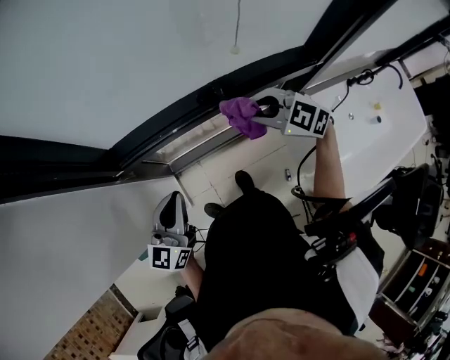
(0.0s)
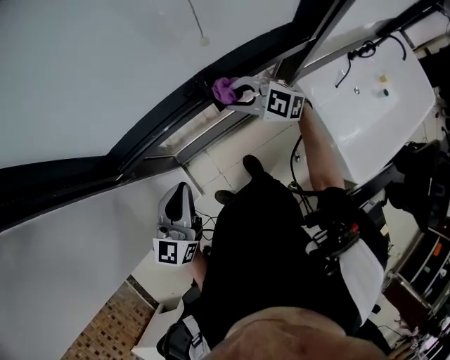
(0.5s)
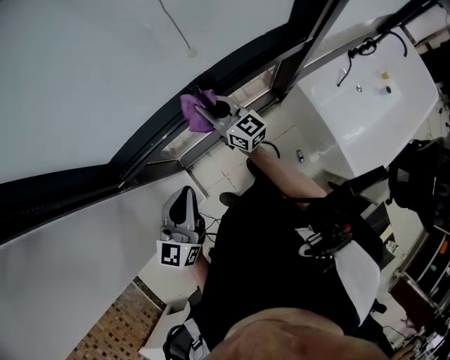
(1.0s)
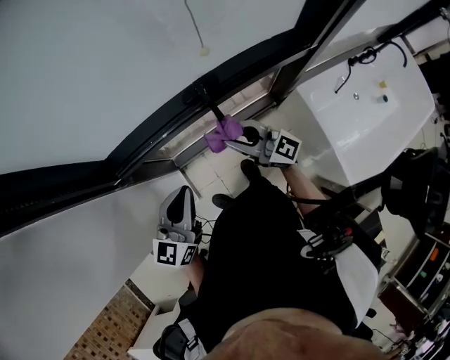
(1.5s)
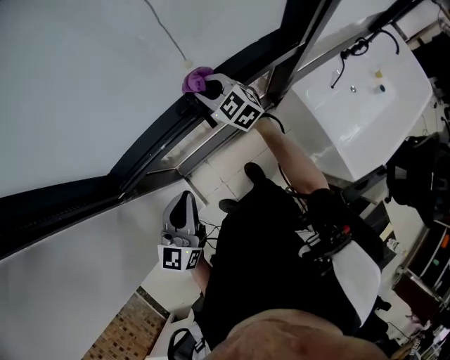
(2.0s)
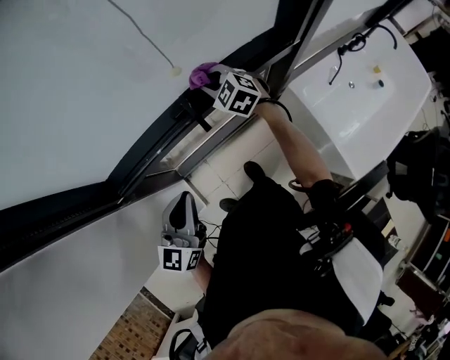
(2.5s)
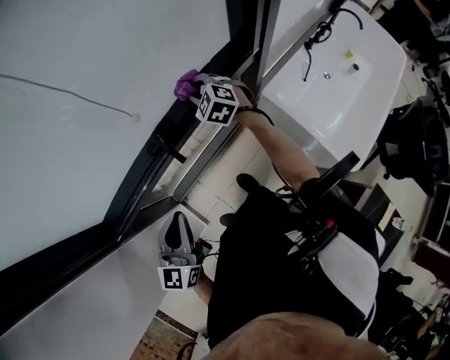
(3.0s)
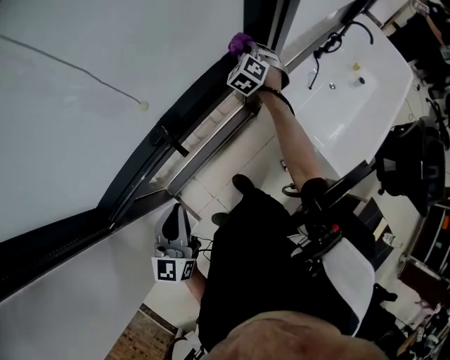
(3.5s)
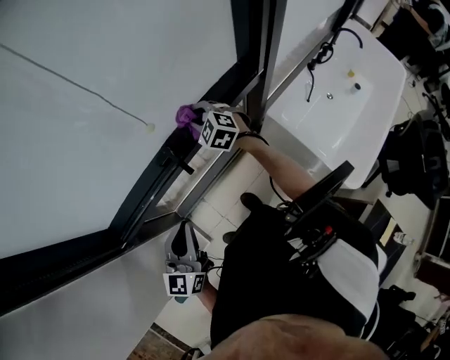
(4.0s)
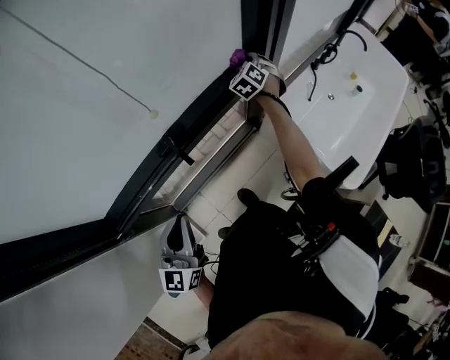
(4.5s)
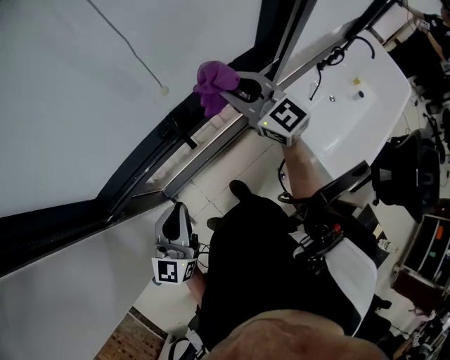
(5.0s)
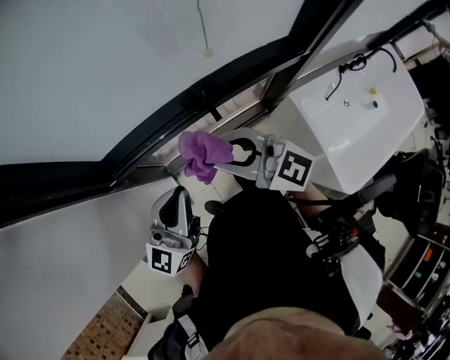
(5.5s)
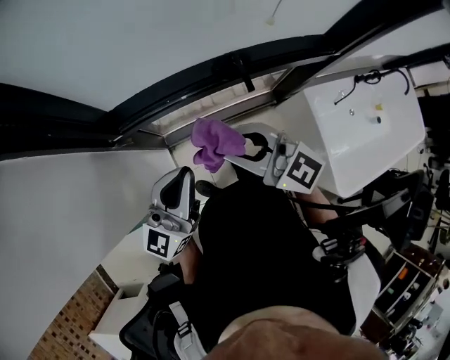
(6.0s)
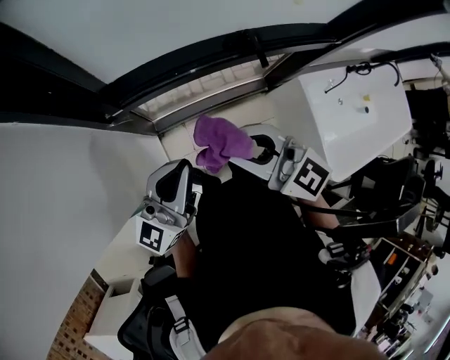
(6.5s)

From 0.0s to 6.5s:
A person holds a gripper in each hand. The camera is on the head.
From 0.0s to 2.0s: The left gripper is displaced to the right by roughly 10 cm; the right gripper goes forward and backward, about 15 cm each way, reversing 2 times, and turns by about 30 degrees.
From 2.0s to 4.5s: The right gripper shifts by roughly 35 cm, and swivels some 50 degrees.
From 4.5s to 6.5s: The right gripper changes place by roughly 70 cm, and tilts its fingers approximately 30 degrees upward; the left gripper moves about 20 cm, and swivels approximately 20 degrees.

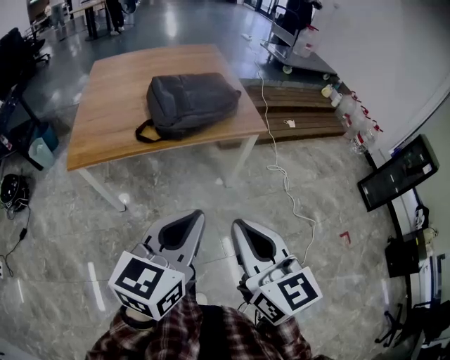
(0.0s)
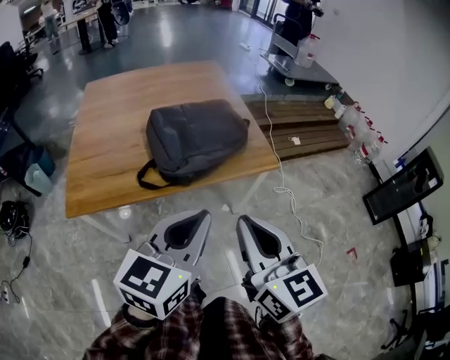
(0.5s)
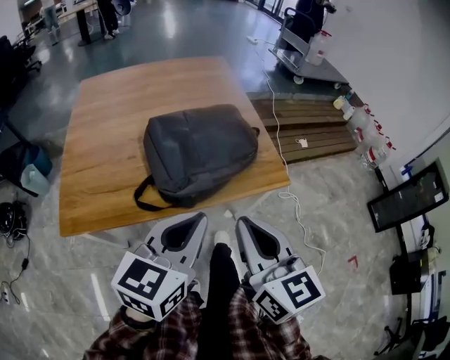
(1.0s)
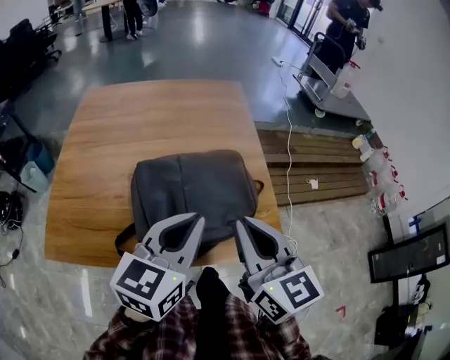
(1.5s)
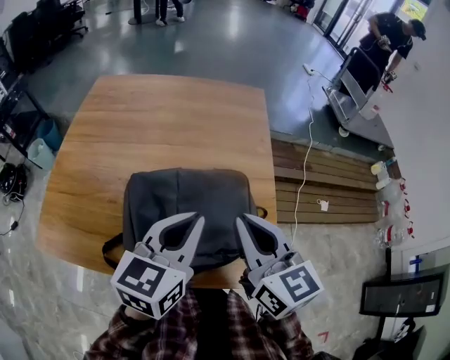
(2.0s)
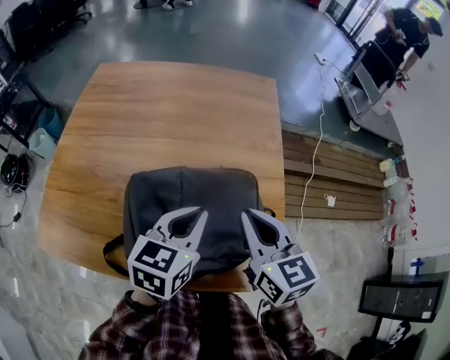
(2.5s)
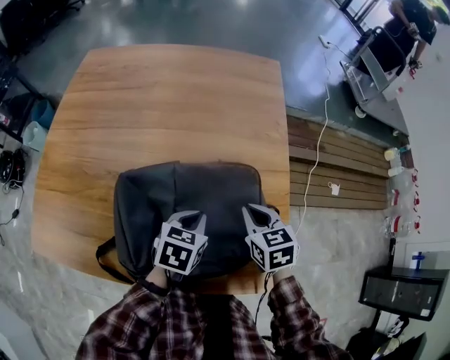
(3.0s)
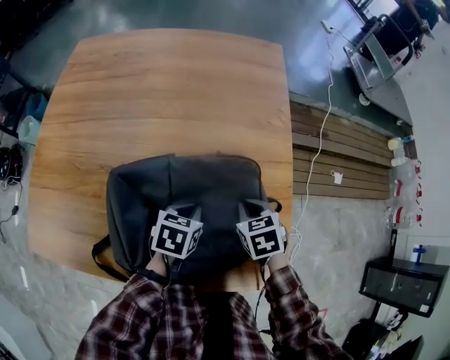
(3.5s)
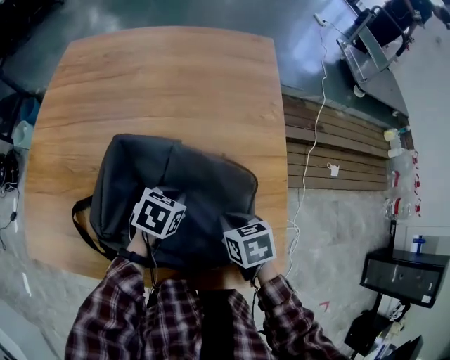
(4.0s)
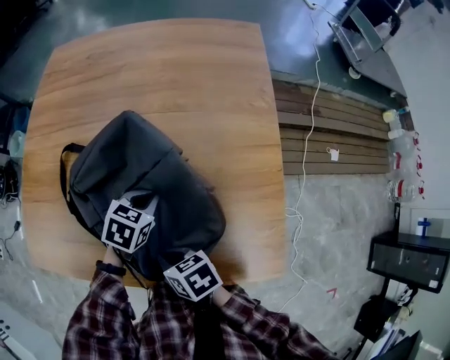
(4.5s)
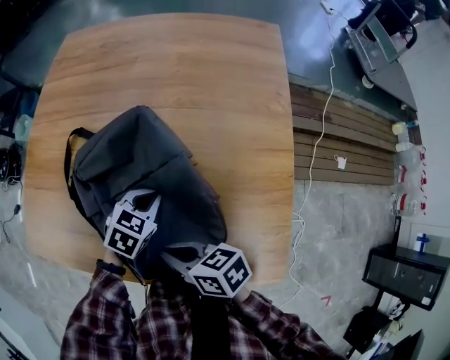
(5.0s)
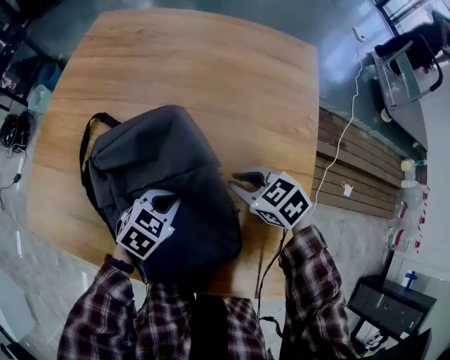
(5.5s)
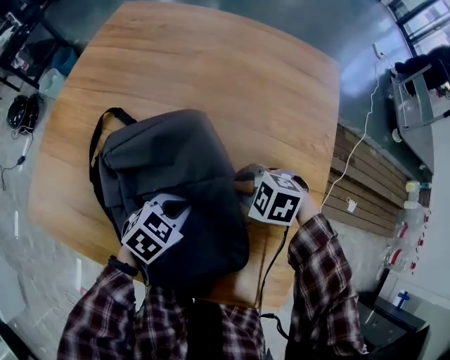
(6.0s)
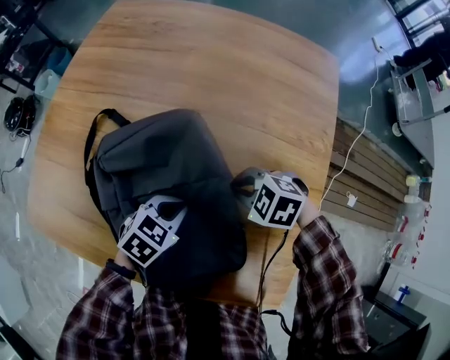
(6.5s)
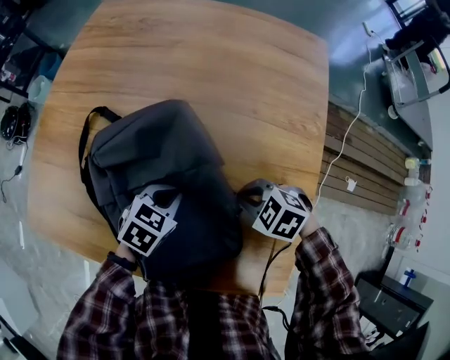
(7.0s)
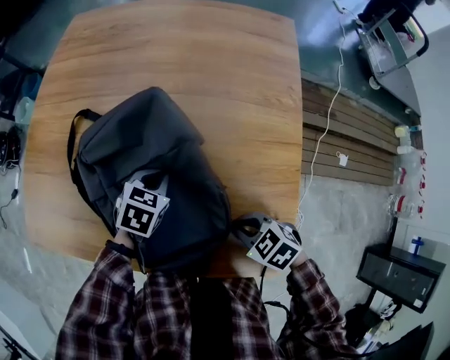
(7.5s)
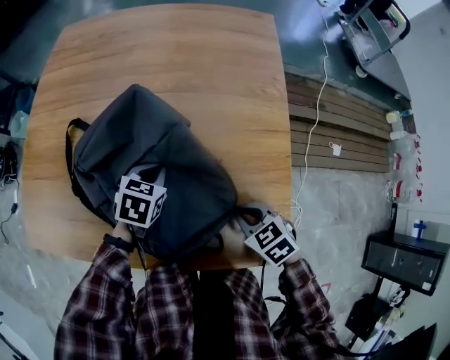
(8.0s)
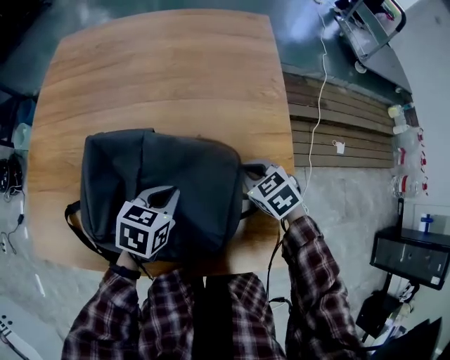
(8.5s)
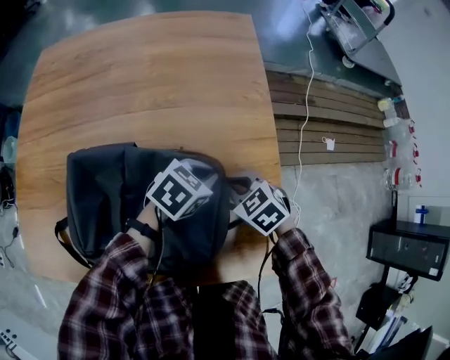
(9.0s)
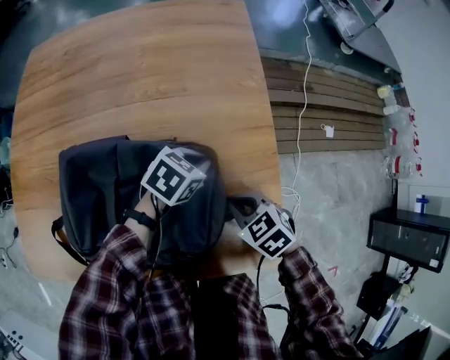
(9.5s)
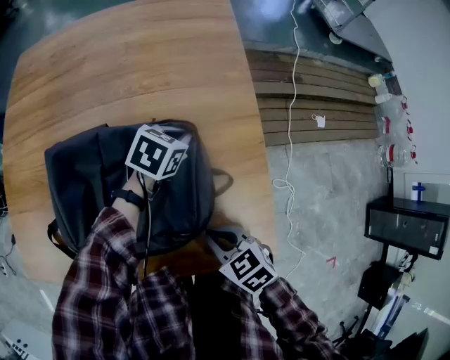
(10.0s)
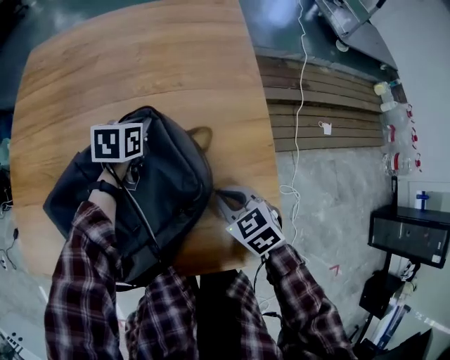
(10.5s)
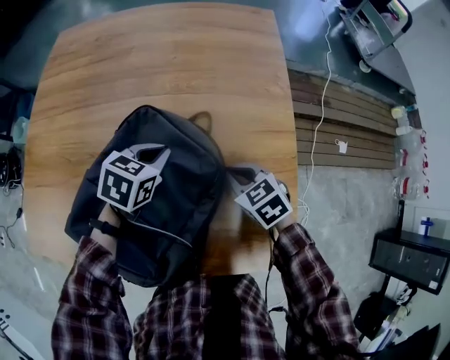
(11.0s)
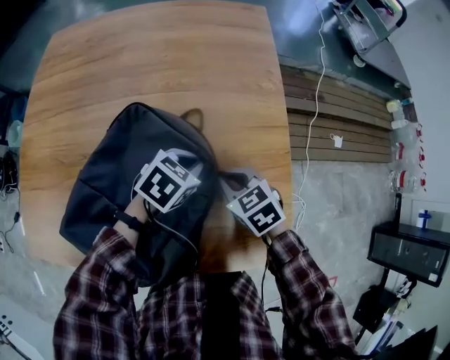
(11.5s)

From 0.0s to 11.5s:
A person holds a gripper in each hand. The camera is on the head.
From 0.0s to 2.0s: The two grippers travel together, forward, roughly 60 cm.
From 2.0s to 4.0s: Both grippers move downward, about 30 cm. The right gripper points its fingers about 50 degrees further downward. Meanwhile the left gripper points its fingers roughly 40 degrees further downward.
From 4.0s to 6.0s: The left gripper shifts by about 5 cm. The right gripper shifts by about 15 cm, rotates around the line of its fingers by about 70 degrees, counterclockwise from behind, and opens its fingers.
From 6.0s to 7.5s: The right gripper moves some 20 cm, and swivels about 30 degrees.
From 7.5s to 9.5s: The left gripper ends up some 20 cm from where it was, and rotates about 30 degrees. Meanwhile the right gripper swivels approximately 20 degrees.
From 9.5s to 11.5s: The grippers both shift to the left by some 5 cm. The right gripper goes backward and returns, roughly 10 cm each way.

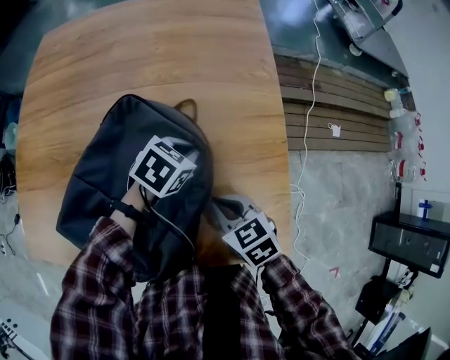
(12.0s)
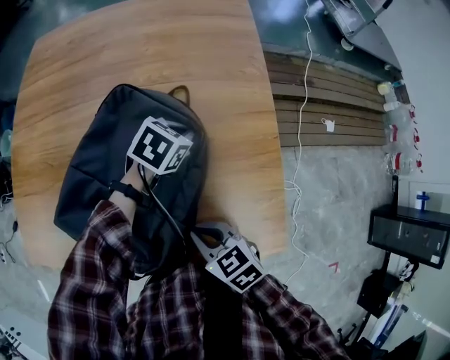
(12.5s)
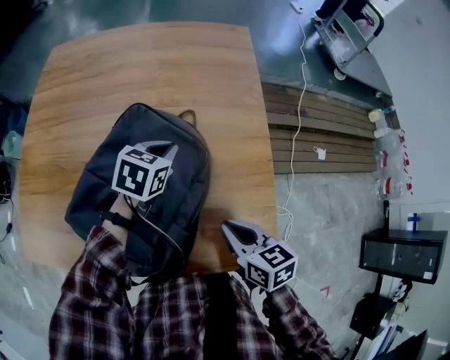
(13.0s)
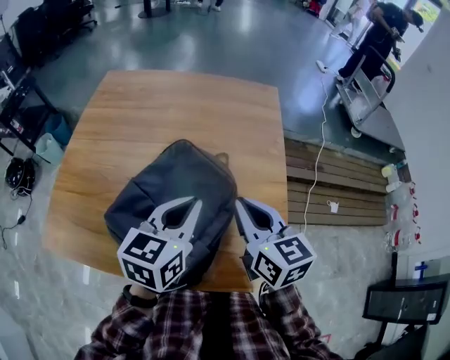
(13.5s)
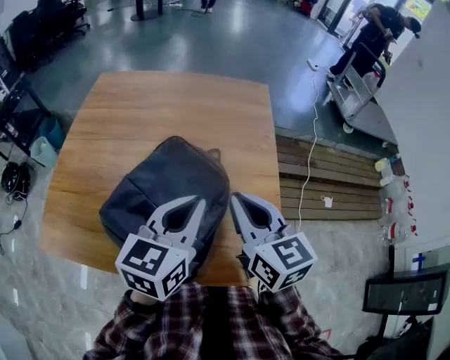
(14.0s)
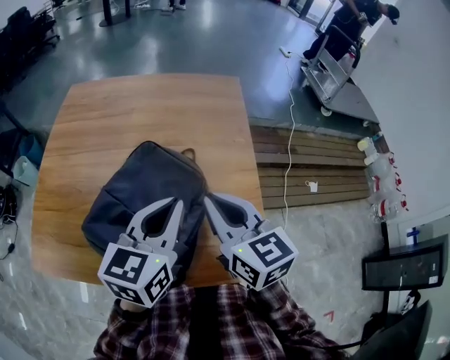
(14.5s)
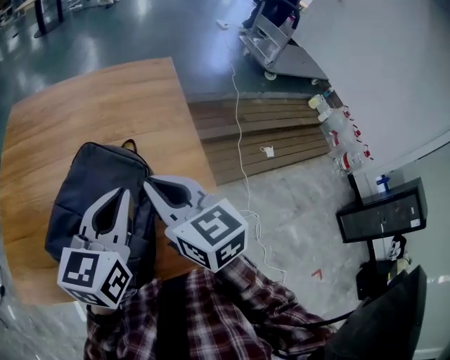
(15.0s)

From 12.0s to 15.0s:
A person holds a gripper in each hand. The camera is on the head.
From 12.0s to 13.5s: The two grippers go about 25 cm upward. The right gripper turns by about 30 degrees; the left gripper tilts its fingers some 30 degrees upward.
From 13.5s to 15.0s: The left gripper shifts roughly 5 cm to the right.

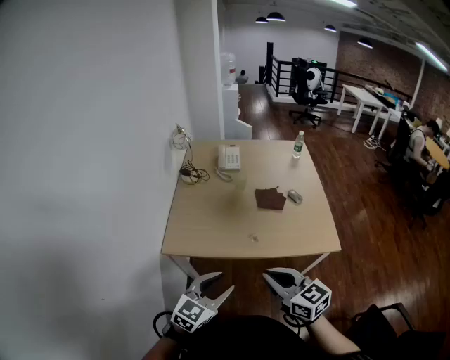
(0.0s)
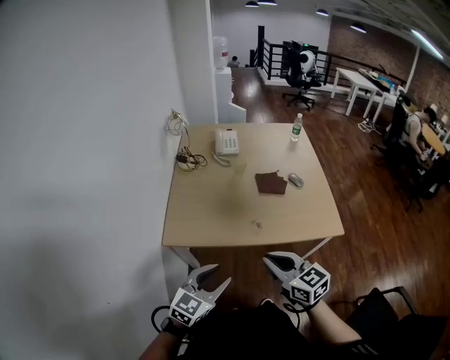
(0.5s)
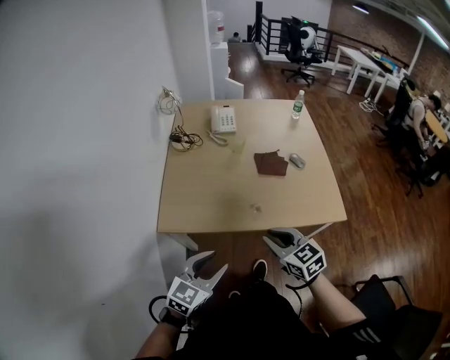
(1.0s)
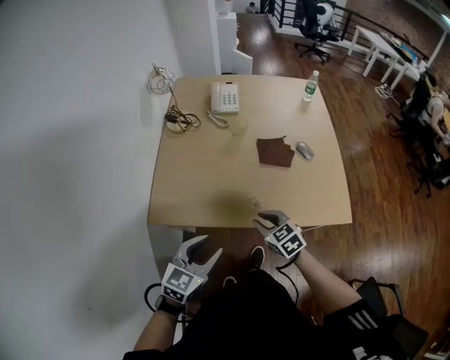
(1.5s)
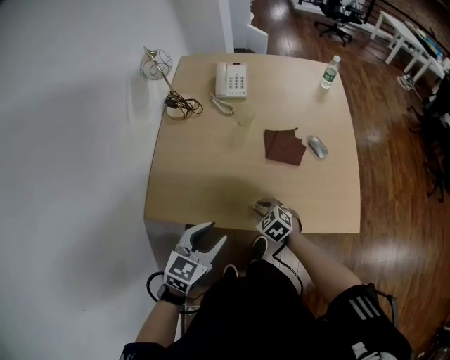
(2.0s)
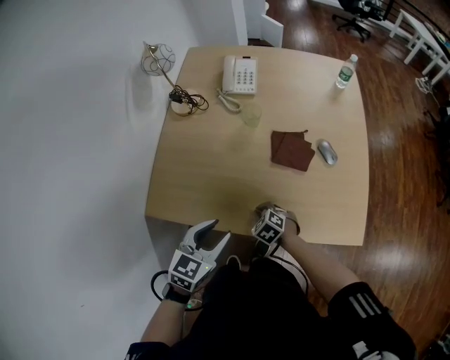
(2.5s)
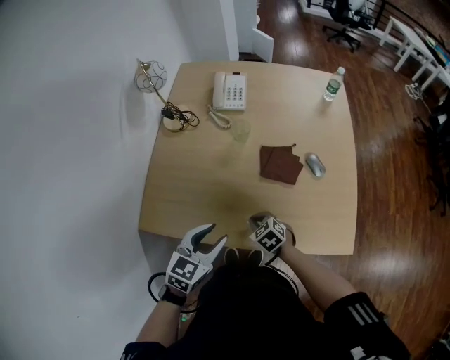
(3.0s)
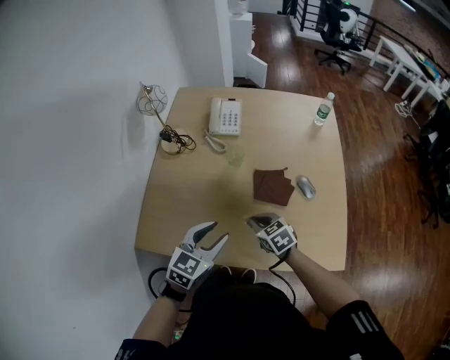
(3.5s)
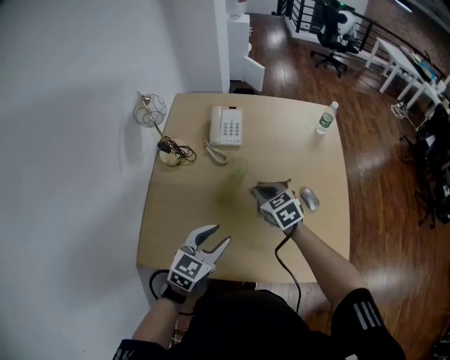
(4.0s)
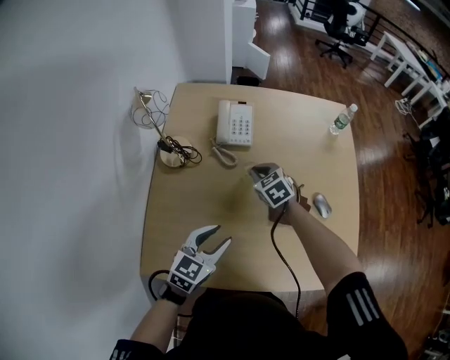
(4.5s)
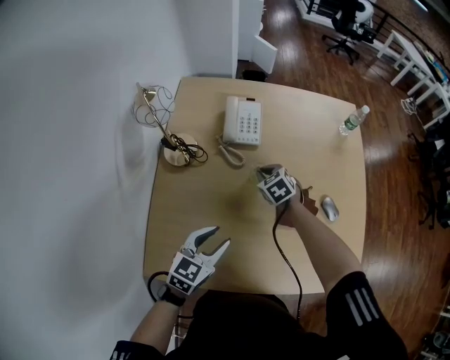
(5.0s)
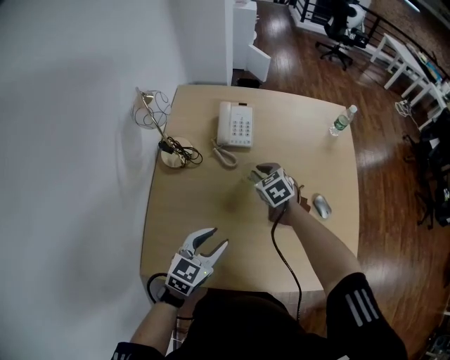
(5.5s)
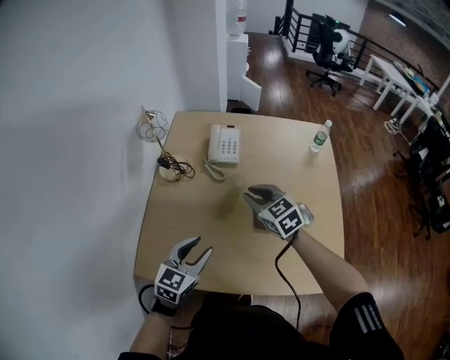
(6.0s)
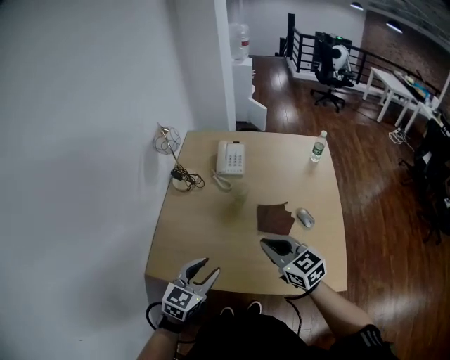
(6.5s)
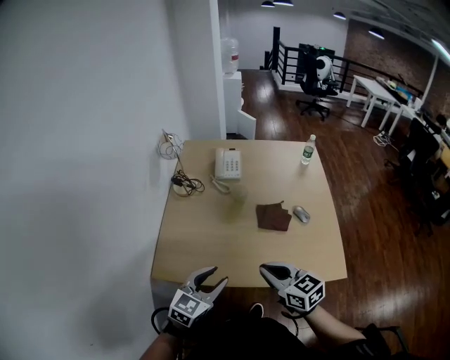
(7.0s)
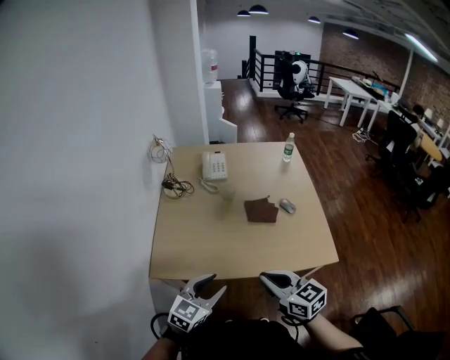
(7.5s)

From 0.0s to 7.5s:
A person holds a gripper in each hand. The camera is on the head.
From 0.0s to 2.0s: The left gripper travels forward and downward by about 25 cm; the right gripper goes approximately 40 cm downward and forward, tilts its fingers about 40 degrees downward, and opens.
From 2.0s to 4.0s: The left gripper shifts about 15 cm forward. Meanwhile the right gripper goes about 30 cm forward and upward, and closes up.
From 4.0s to 5.5s: The right gripper is displaced forward, downward and to the left by approximately 15 cm, while the left gripper is displaced to the left and forward by roughly 10 cm.
From 5.5s to 7.5s: The left gripper shifts some 30 cm backward. Meanwhile the right gripper heads backward, covering some 50 cm, and points its fingers roughly 30 degrees further upward.
